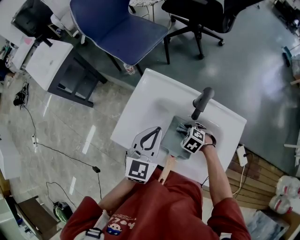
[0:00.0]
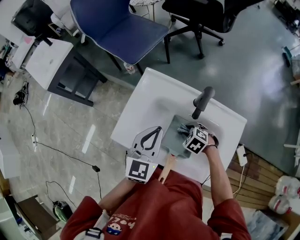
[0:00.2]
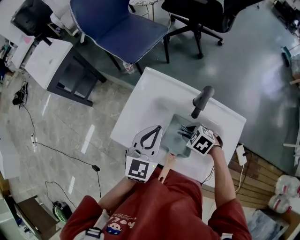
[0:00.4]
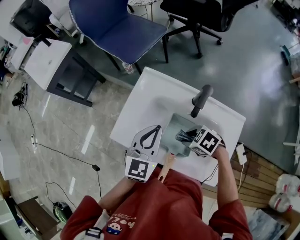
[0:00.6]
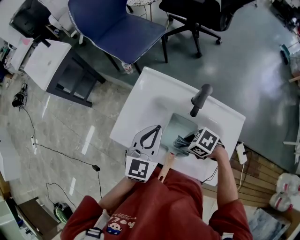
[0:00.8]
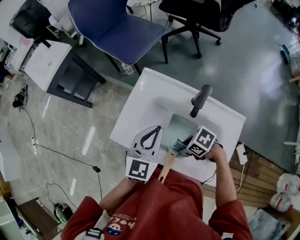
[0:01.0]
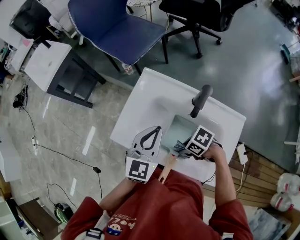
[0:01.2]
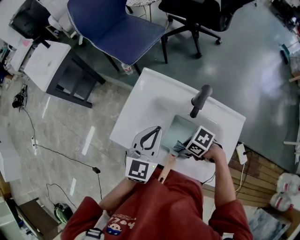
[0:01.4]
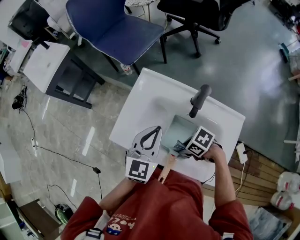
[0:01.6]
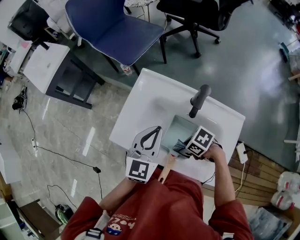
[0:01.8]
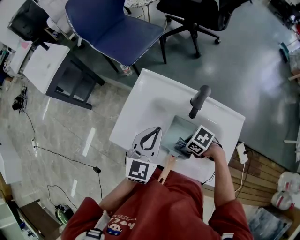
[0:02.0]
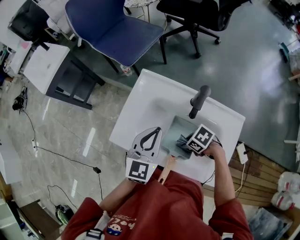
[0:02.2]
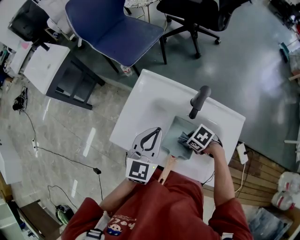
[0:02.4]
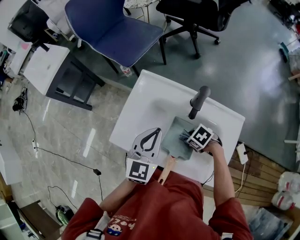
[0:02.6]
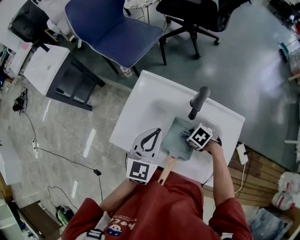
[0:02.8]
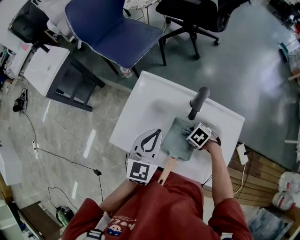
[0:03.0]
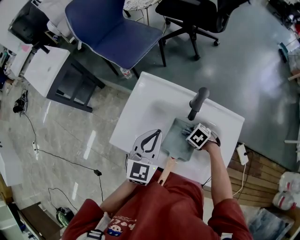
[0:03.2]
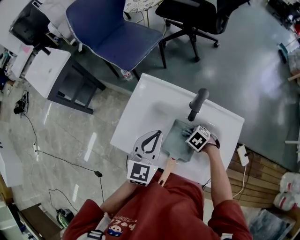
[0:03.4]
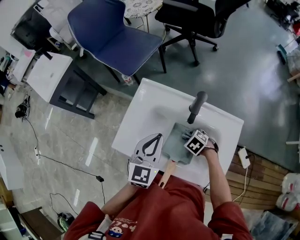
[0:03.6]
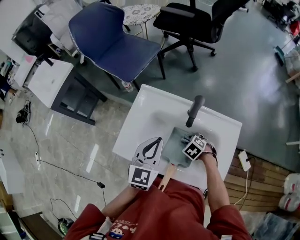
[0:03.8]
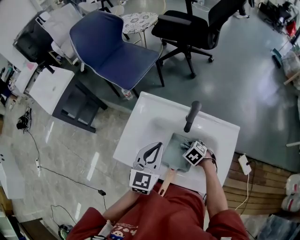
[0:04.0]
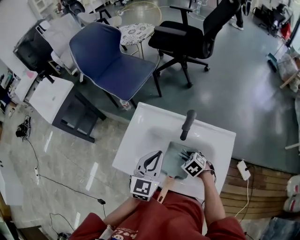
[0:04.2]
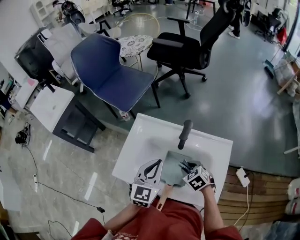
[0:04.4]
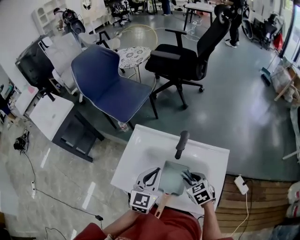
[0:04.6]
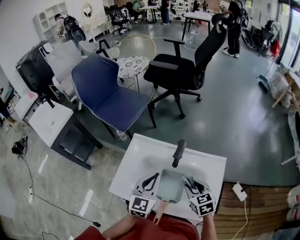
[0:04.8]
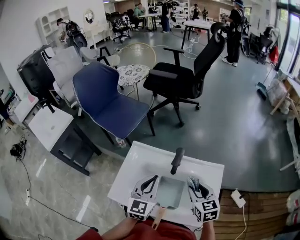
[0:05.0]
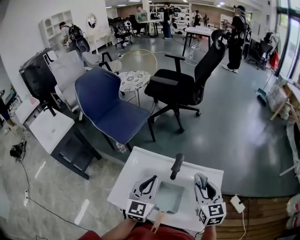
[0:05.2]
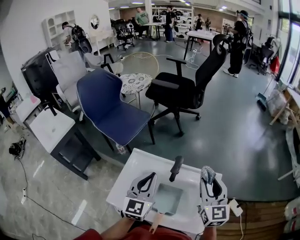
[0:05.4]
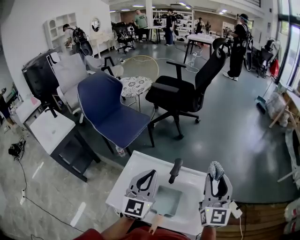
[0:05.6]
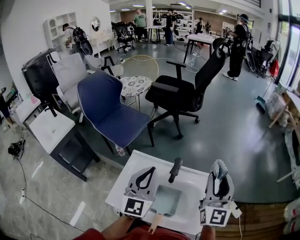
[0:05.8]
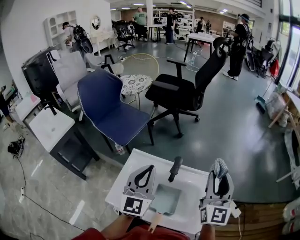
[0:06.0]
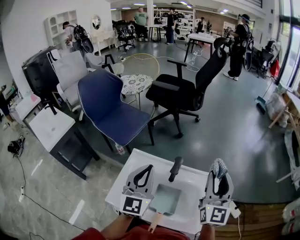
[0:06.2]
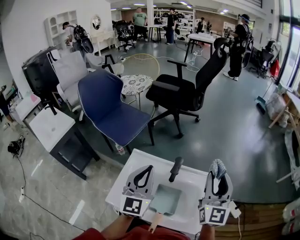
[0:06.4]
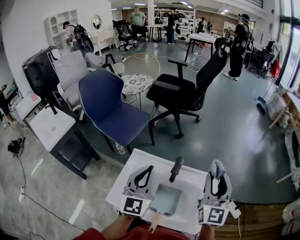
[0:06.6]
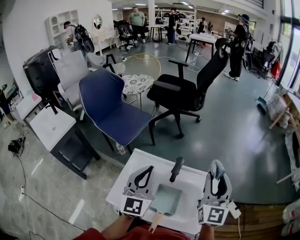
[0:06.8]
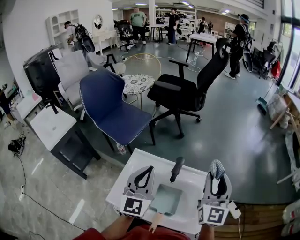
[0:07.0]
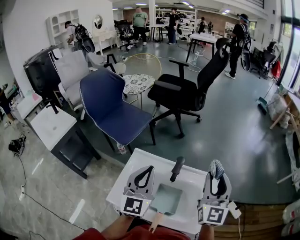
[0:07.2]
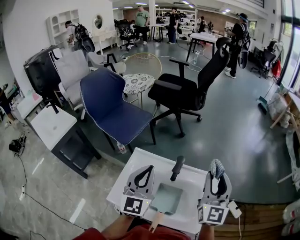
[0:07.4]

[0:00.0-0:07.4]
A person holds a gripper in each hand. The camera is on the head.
0:00.0 to 0:01.4: The right gripper shifts by approximately 10 cm, and turns by approximately 40 degrees.
0:01.4 to 0:03.0: The right gripper changes place by some 10 cm, and rotates roughly 30 degrees.
0:03.0 to 0:04.4: The right gripper is displaced upward by some 10 cm, and swivels approximately 20 degrees.
0:04.4 to 0:06.0: The right gripper is displaced upward by roughly 35 cm, and points its fingers roughly 70 degrees further upward. Meanwhile the left gripper goes approximately 15 cm upward.
0:06.0 to 0:07.4: The grippers move only a little.

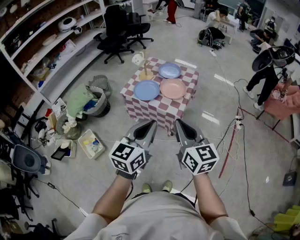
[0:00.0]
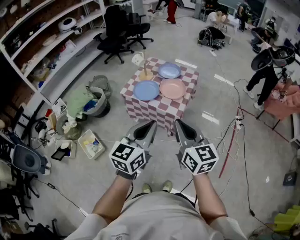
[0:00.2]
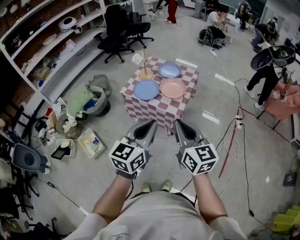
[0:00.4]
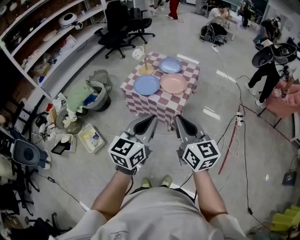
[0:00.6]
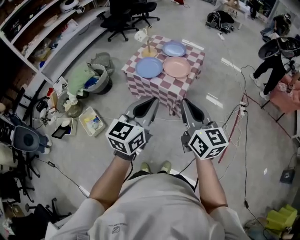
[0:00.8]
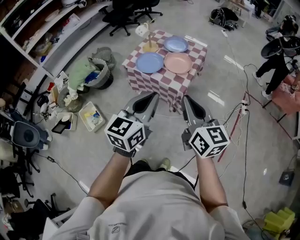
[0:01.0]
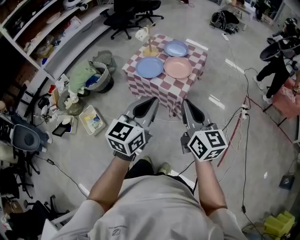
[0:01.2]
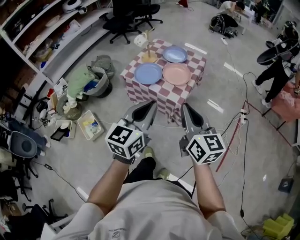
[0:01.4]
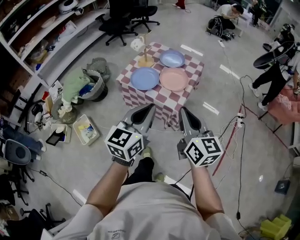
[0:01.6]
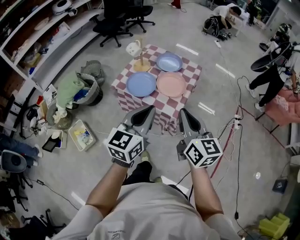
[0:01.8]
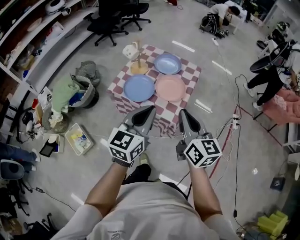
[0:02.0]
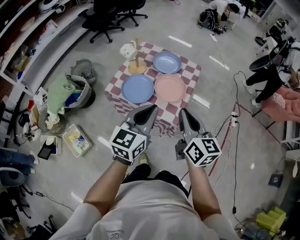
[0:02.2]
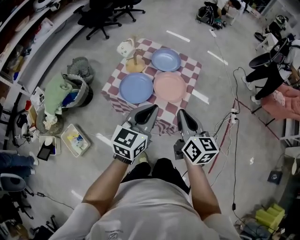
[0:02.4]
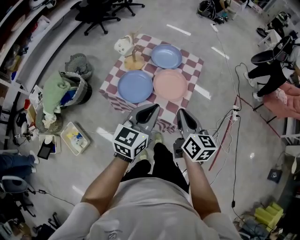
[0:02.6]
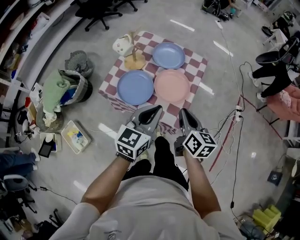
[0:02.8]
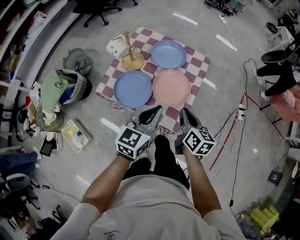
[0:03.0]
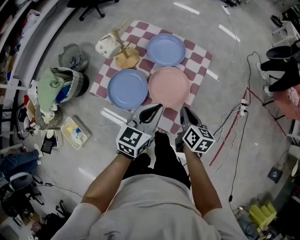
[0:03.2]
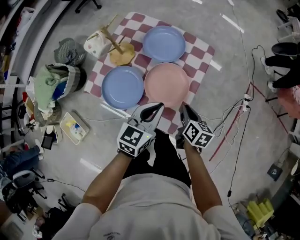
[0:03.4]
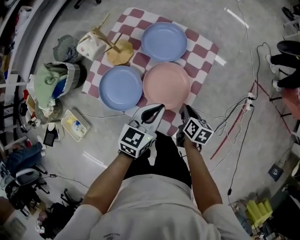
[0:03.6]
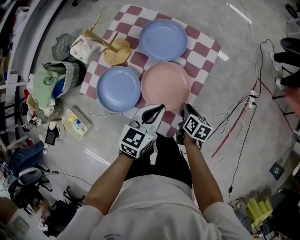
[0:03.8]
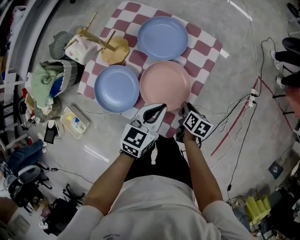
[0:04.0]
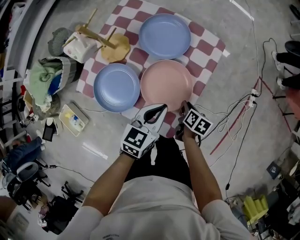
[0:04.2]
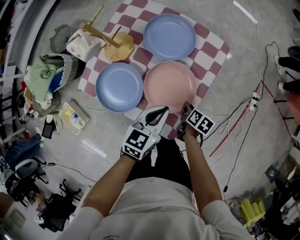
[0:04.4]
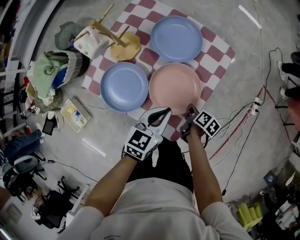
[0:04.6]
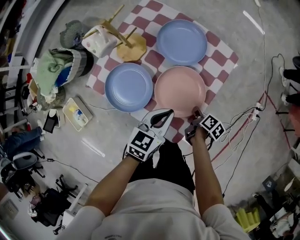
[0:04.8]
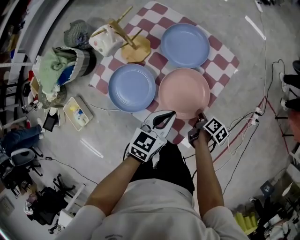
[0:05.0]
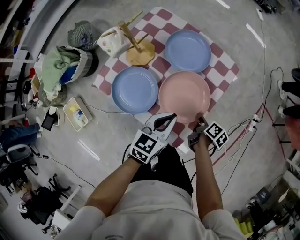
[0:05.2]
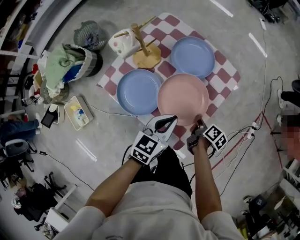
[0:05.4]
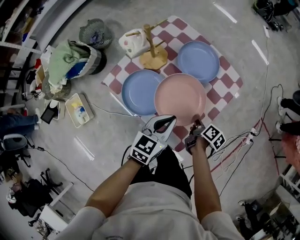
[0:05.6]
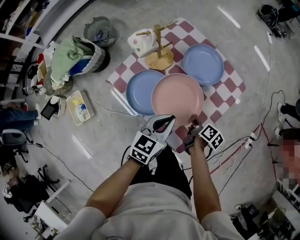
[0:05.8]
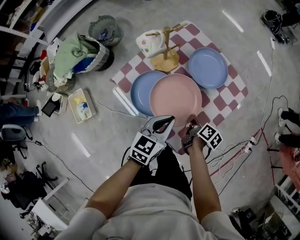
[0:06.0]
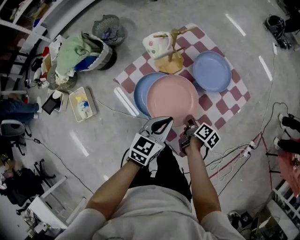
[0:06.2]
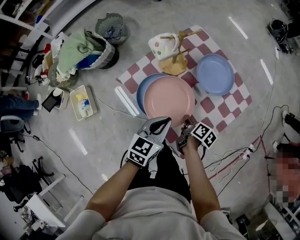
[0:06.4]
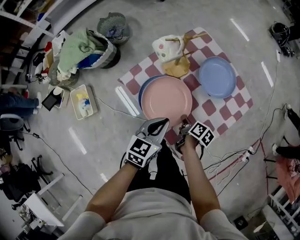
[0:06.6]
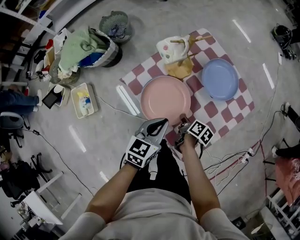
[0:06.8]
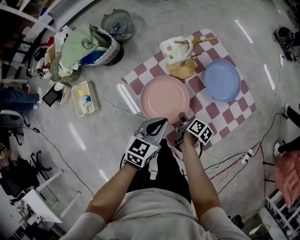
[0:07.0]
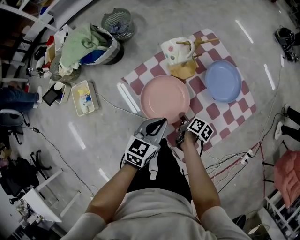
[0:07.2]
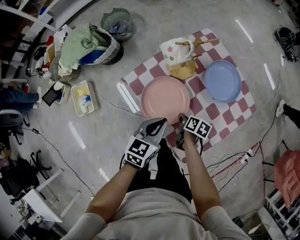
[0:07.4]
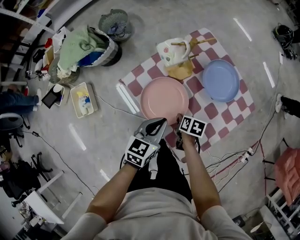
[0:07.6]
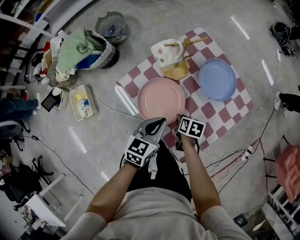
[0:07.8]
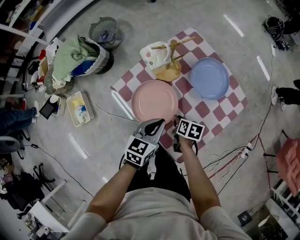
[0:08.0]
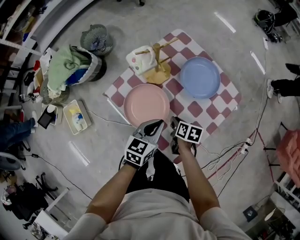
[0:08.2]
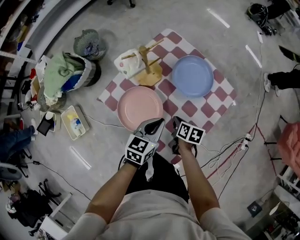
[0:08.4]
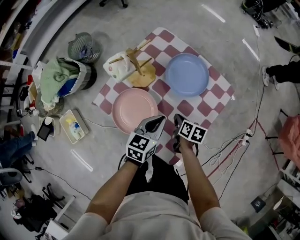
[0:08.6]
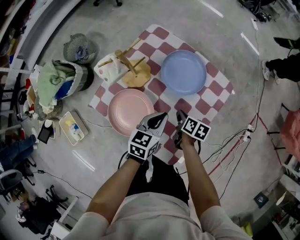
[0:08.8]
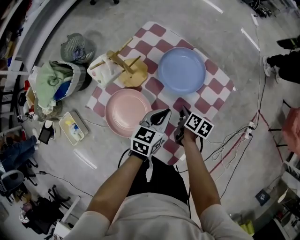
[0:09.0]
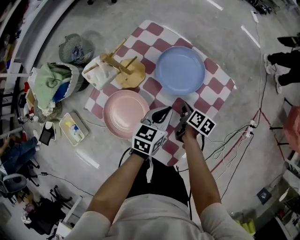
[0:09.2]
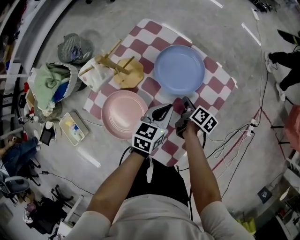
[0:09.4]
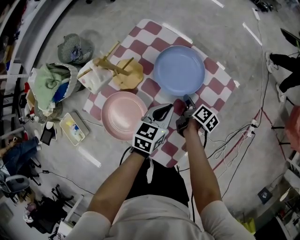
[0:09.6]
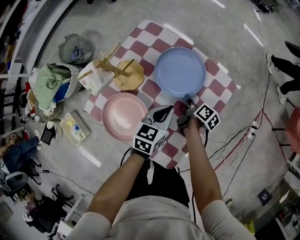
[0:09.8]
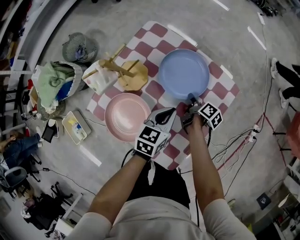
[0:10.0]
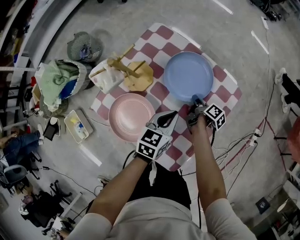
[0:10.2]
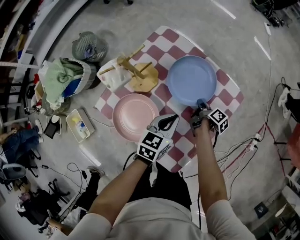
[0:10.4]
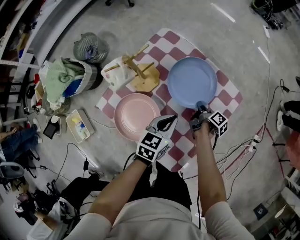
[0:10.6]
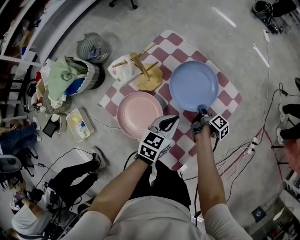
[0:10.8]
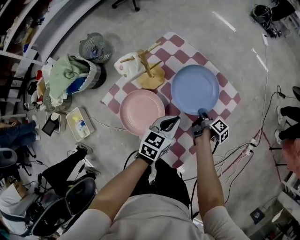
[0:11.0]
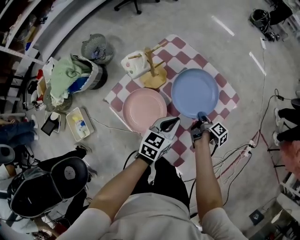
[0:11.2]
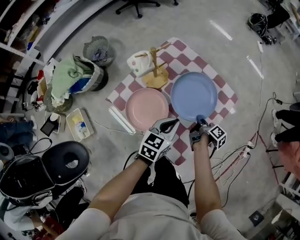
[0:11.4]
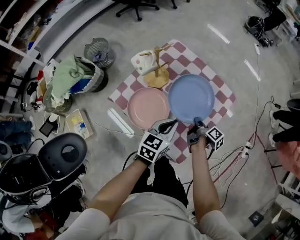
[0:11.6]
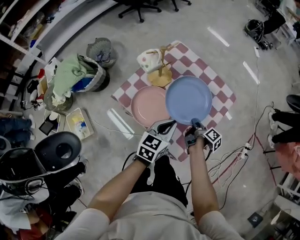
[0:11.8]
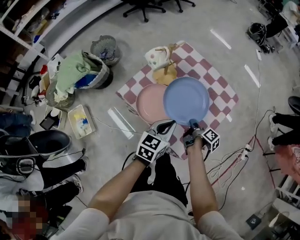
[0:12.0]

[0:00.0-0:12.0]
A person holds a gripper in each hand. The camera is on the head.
0:00.0 to 0:01.6: Both grippers travel together forward, about 10 cm.
0:01.6 to 0:03.0: The grippers both shift forward and downward by roughly 35 cm. The right gripper swivels about 30 degrees.
0:03.0 to 0:04.4: The right gripper travels downward by some 30 cm, and tilts its fingers approximately 30 degrees downward; the left gripper shifts approximately 20 cm downward and forward.
0:04.4 to 0:06.0: The left gripper heads to the left, covering some 10 cm; the right gripper goes approximately 15 cm to the left and upward.
0:06.0 to 0:07.6: The left gripper travels to the left by roughly 10 cm, while the right gripper goes approximately 10 cm to the left and downward, and changes its angle by approximately 40 degrees.
0:07.6 to 0:09.0: The grippers both shift to the right and forward by about 20 cm. The right gripper rotates about 30 degrees.
0:09.0 to 0:10.4: The right gripper moves forward, some 10 cm, and turns by approximately 30 degrees.
0:10.4 to 0:12.0: The left gripper shifts approximately 20 cm backward, upward and to the left. Meanwhile the right gripper shifts about 25 cm backward and upward.

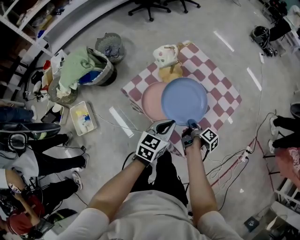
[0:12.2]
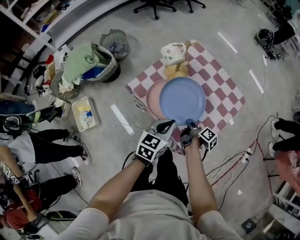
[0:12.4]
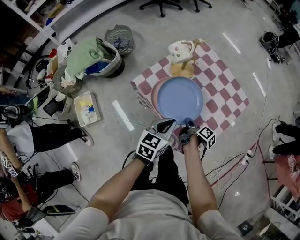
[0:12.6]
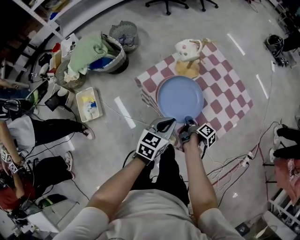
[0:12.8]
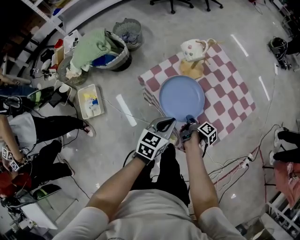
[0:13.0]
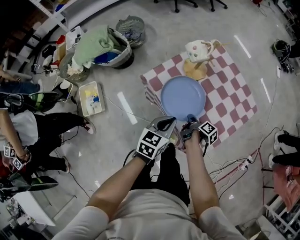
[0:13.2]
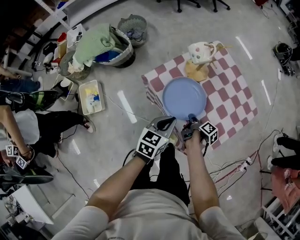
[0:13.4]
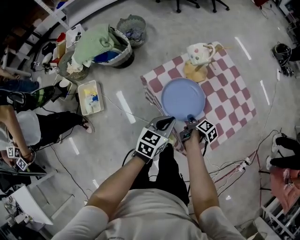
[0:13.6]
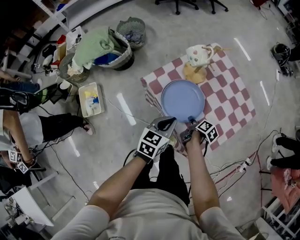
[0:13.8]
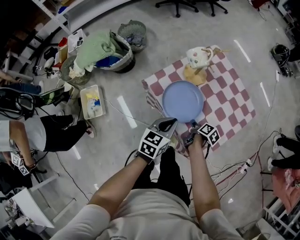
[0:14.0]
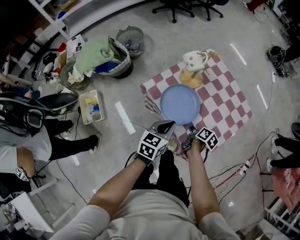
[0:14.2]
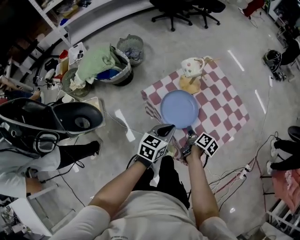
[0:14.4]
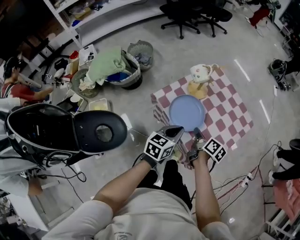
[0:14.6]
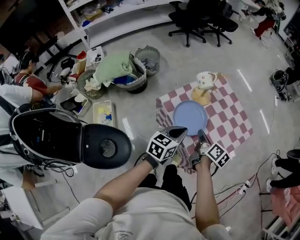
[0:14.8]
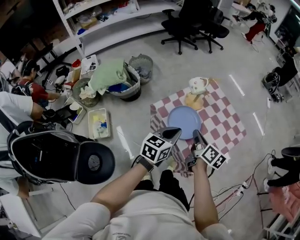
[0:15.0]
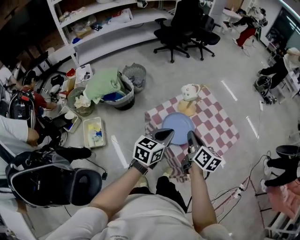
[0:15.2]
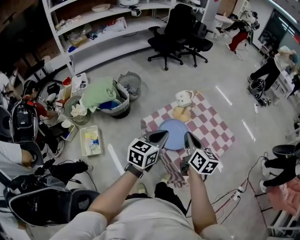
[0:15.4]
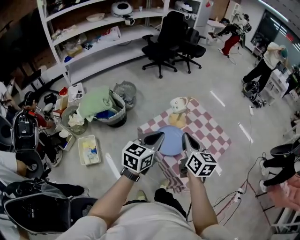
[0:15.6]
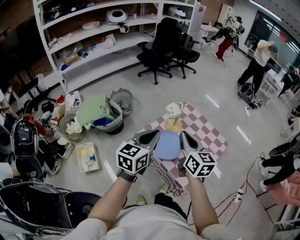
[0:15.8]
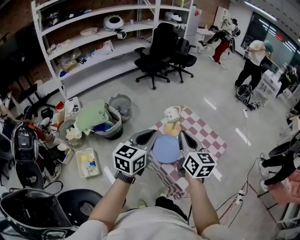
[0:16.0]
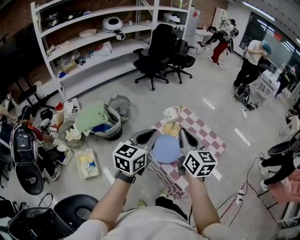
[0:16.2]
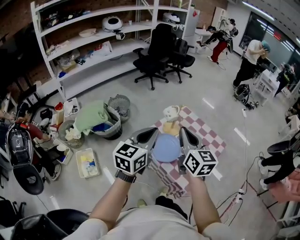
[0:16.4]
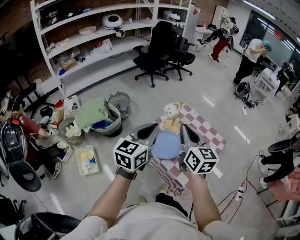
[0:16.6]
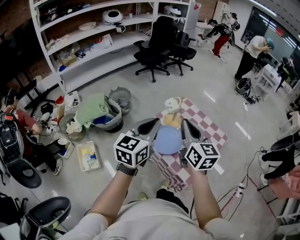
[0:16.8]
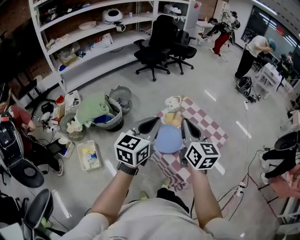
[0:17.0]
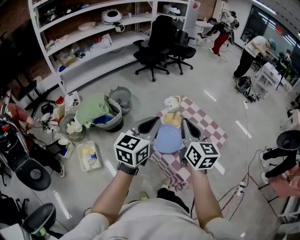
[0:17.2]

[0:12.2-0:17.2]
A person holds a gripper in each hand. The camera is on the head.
0:12.2 to 0:13.8: The right gripper shifts about 10 cm to the left and downward, and swivels about 30 degrees; the left gripper travels to the left by approximately 10 cm.
0:13.8 to 0:15.6: The right gripper shifts roughly 40 cm upward, and rotates around the line of its fingers by roughly 50 degrees, counterclockwise from behind; the left gripper moves upward, about 25 cm.
0:15.6 to 0:17.2: Both grippers move upward, some 10 cm.
